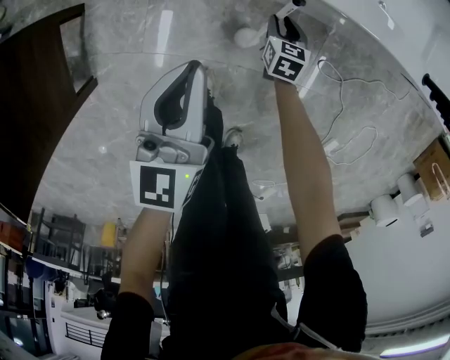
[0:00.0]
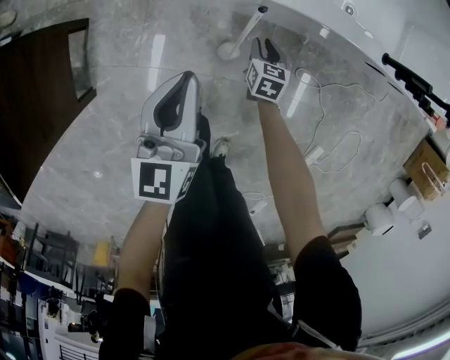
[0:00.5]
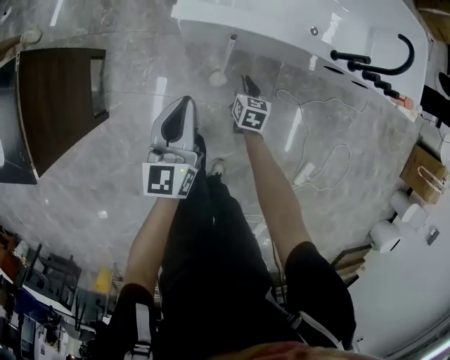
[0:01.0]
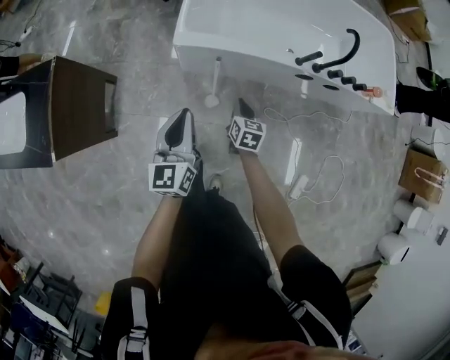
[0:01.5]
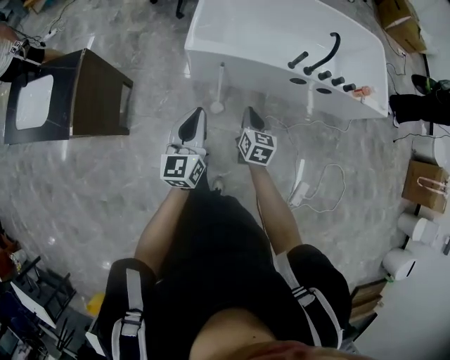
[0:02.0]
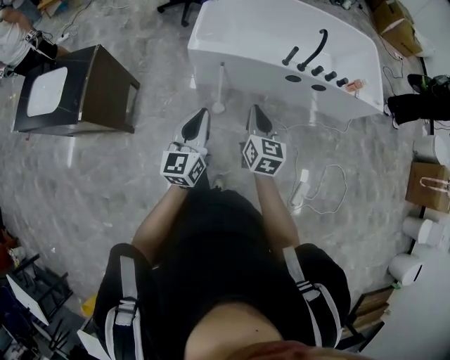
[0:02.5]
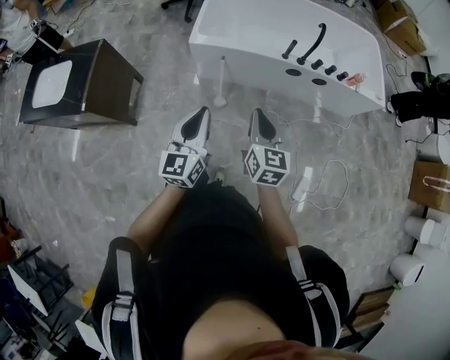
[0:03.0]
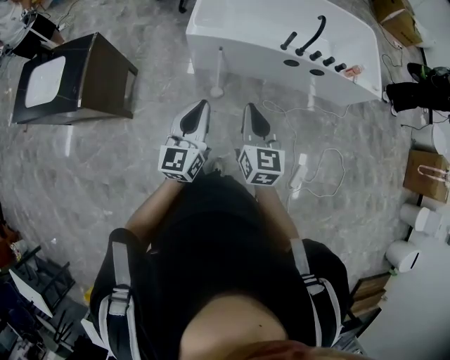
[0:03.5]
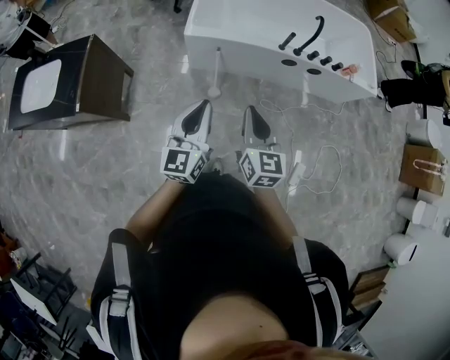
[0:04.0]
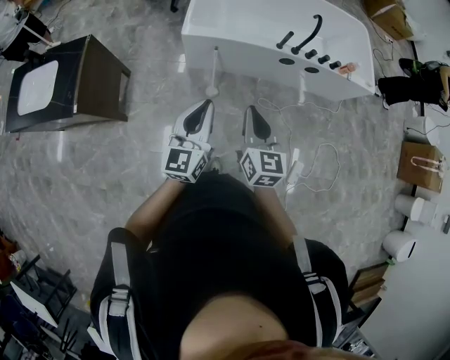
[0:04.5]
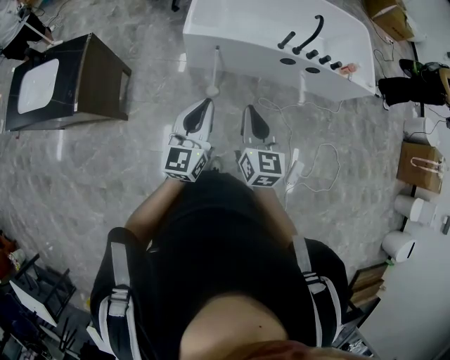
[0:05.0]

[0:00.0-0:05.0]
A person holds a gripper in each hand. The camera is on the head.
0.0 to 2.5 s: The two grippers travel together, backward and to the right, approximately 40 cm. The right gripper heads upward, covering approximately 70 cm, angles its fingers upward, by about 30 degrees, and closes. Meanwhile the left gripper goes approximately 40 cm upward.
2.5 to 5.0 s: The right gripper shifts approximately 10 cm upward, backward and to the left, while the left gripper ends up some 5 cm from where it was.

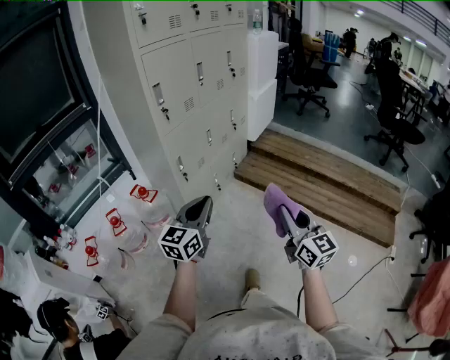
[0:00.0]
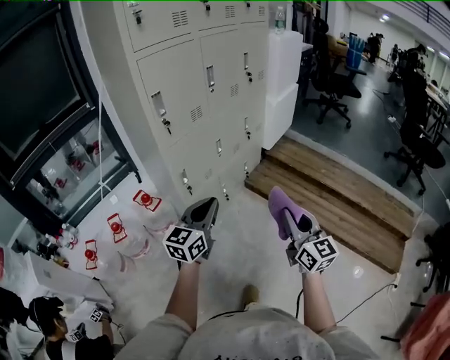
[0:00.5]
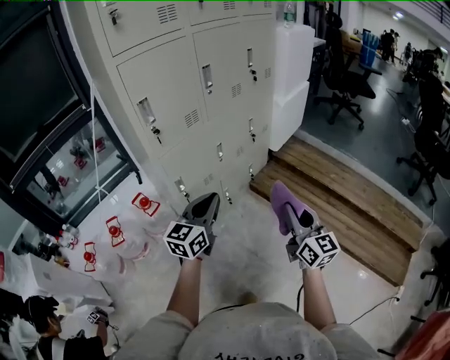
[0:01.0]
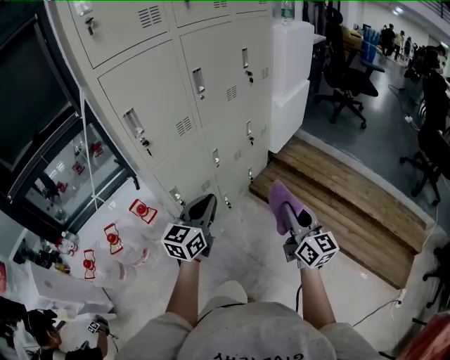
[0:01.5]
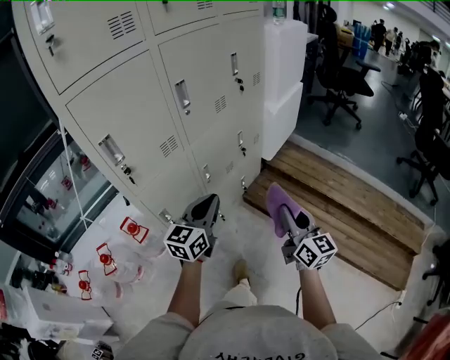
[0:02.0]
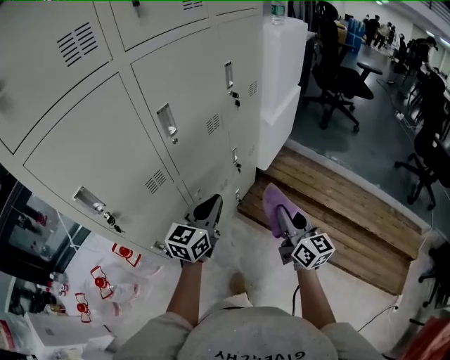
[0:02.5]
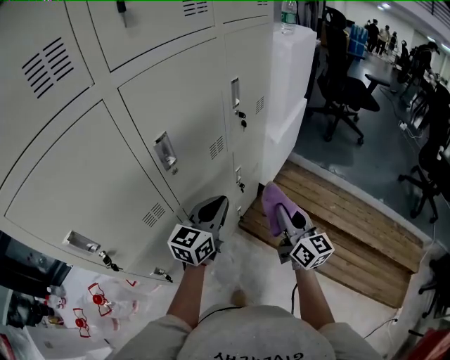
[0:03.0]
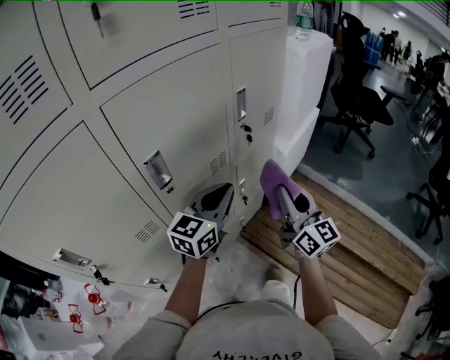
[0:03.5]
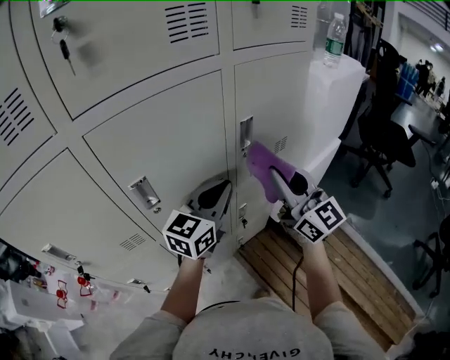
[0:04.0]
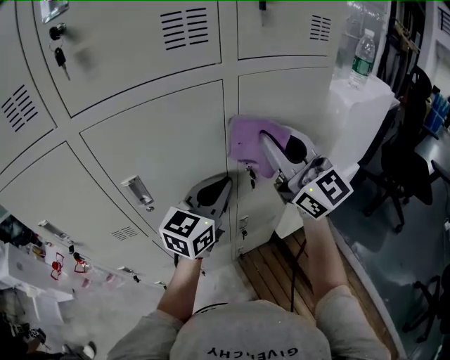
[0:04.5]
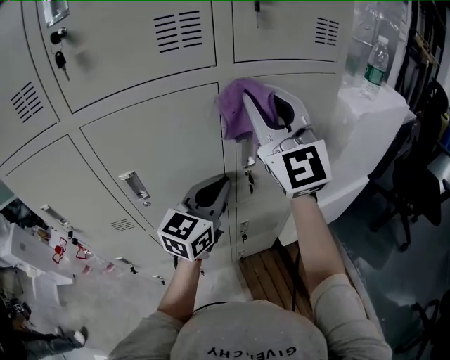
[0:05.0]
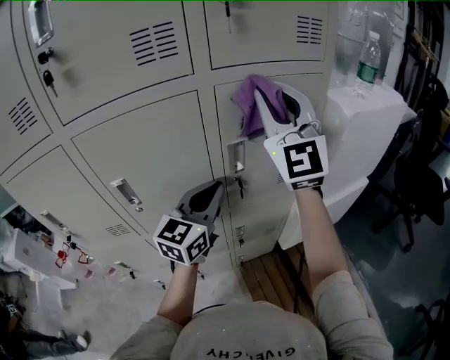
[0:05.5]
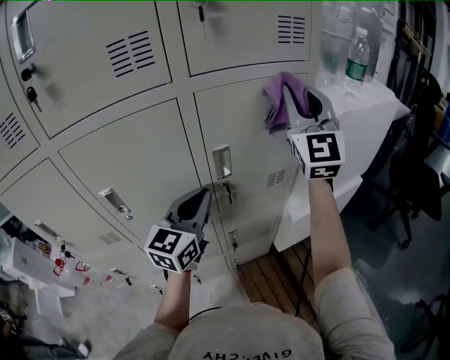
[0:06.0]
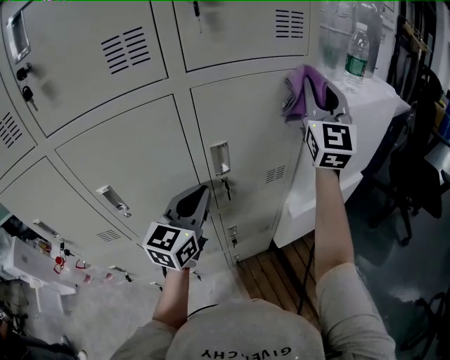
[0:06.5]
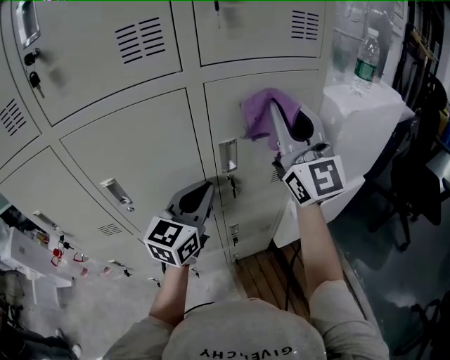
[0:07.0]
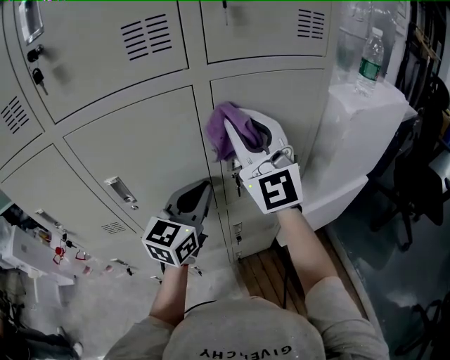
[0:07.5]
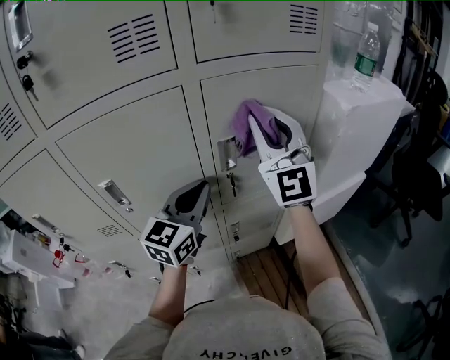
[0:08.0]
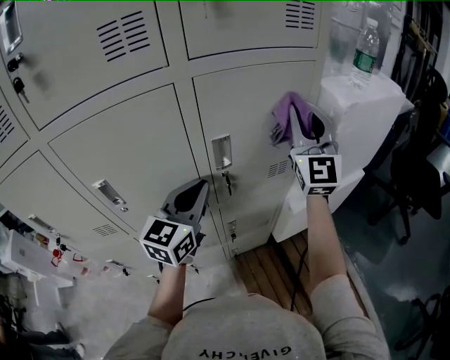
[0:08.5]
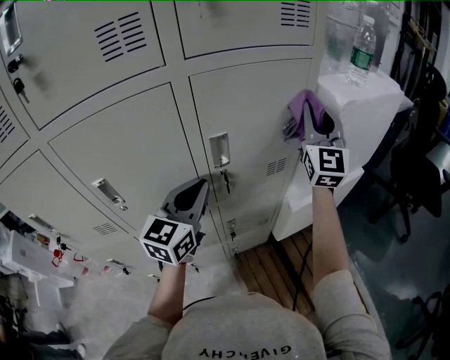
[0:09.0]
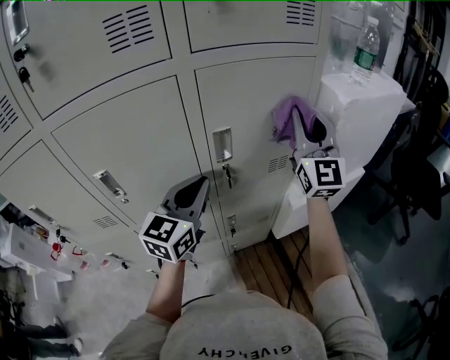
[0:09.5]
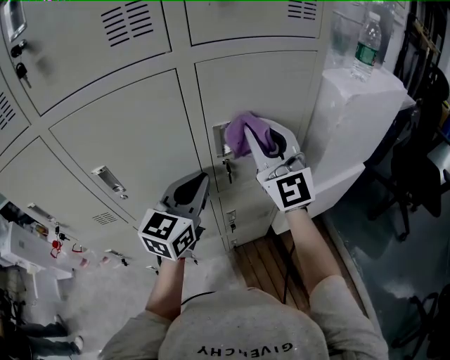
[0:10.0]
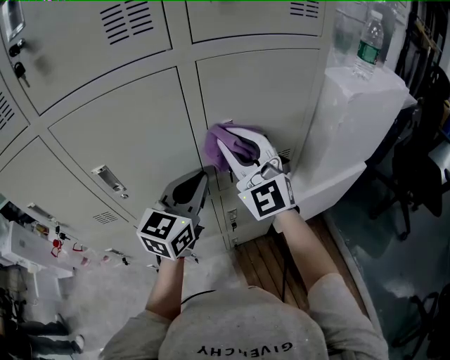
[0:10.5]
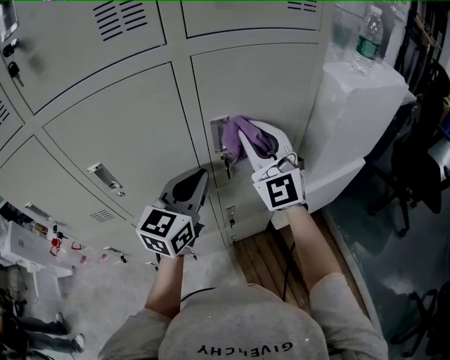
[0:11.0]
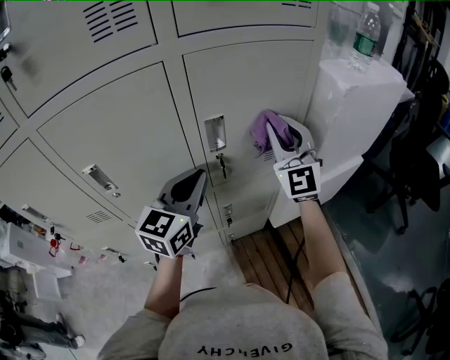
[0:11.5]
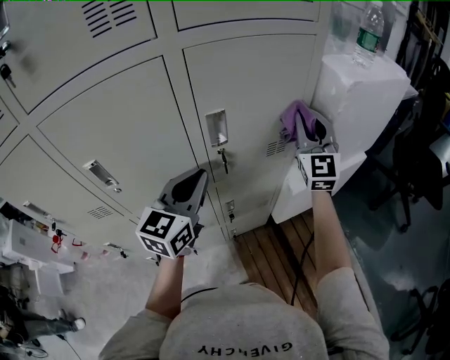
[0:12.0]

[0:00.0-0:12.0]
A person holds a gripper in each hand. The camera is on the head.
0.0 to 2.0 s: Both grippers are carried forward, about 50 cm.
2.0 to 4.0 s: Both grippers are carried forward, approximately 40 cm. The right gripper goes about 20 cm upward, and turns by some 30 degrees.
4.0 to 6.0 s: The right gripper travels upward, forward and to the right by approximately 30 cm, and changes its angle by about 30 degrees, while the left gripper moves roughly 5 cm, and changes its angle by about 20 degrees.
6.0 to 8.0 s: The right gripper swings left and right, some 20 cm each way, with 2 reversals.
8.0 to 10.0 s: The right gripper is displaced downward by about 5 cm, and goes to the right and returns, about 15 cm each way.
10.0 to 12.0 s: The right gripper goes about 20 cm to the right, forward and downward, and swivels roughly 20 degrees.

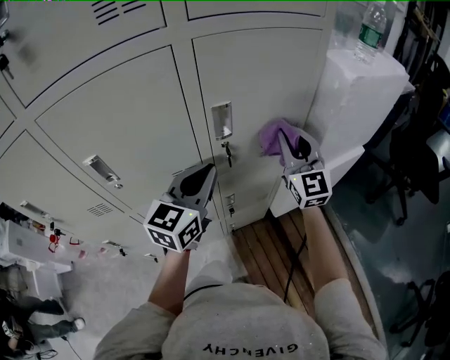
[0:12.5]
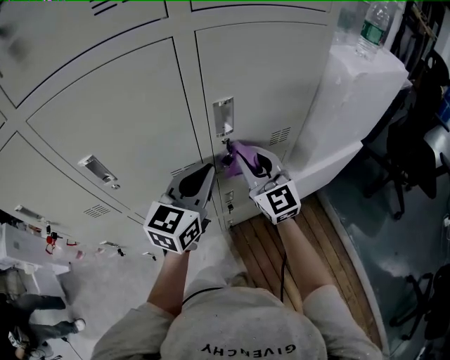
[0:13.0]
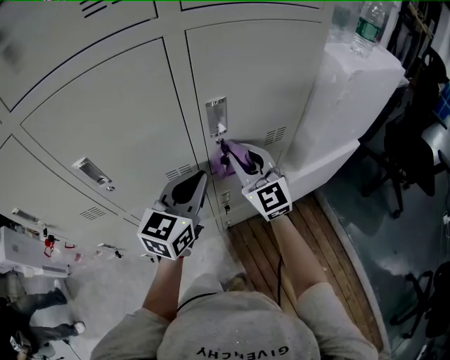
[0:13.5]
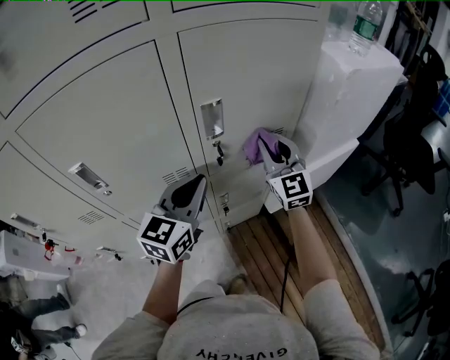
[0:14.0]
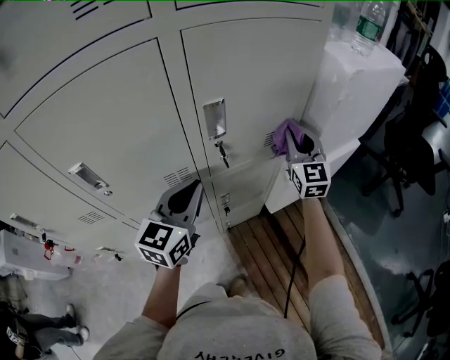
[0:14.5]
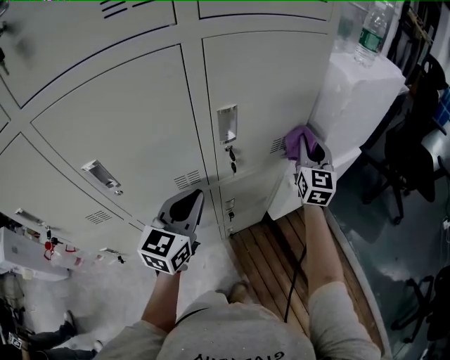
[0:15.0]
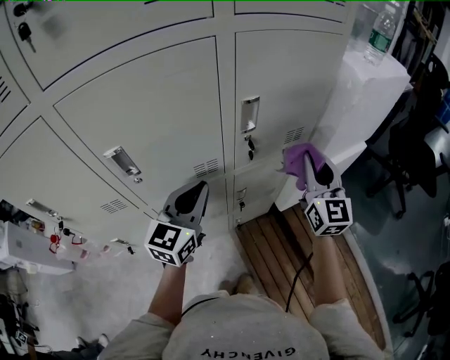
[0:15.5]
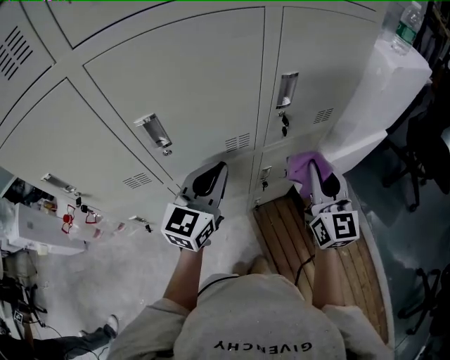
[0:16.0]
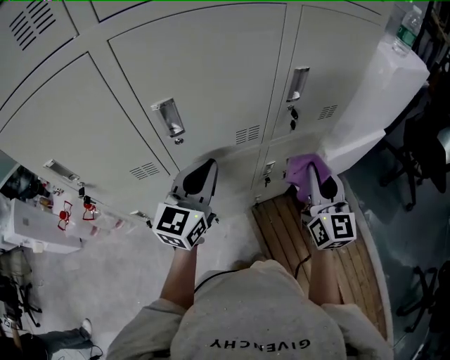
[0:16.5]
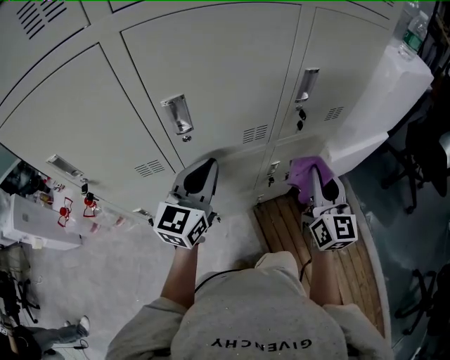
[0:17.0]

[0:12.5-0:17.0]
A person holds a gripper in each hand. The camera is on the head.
12.5 to 14.5 s: The right gripper goes some 10 cm downward and forward, and goes to the left and returns, about 10 cm each way.
14.5 to 17.0 s: The right gripper moves backward and to the left, roughly 25 cm, and swivels approximately 20 degrees. Meanwhile the left gripper moves to the left and backward, approximately 20 cm.

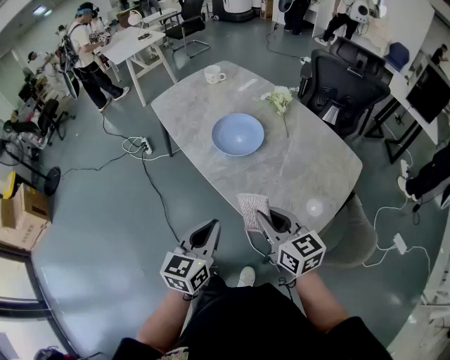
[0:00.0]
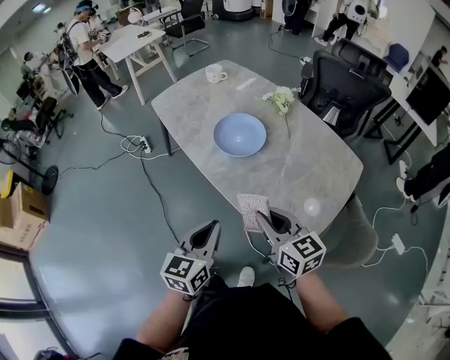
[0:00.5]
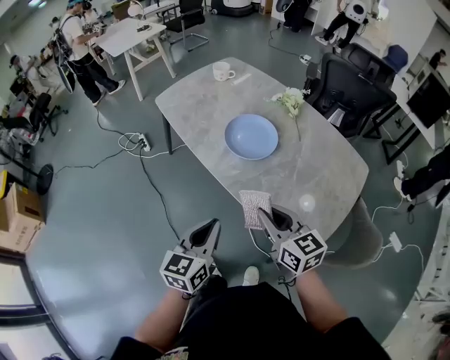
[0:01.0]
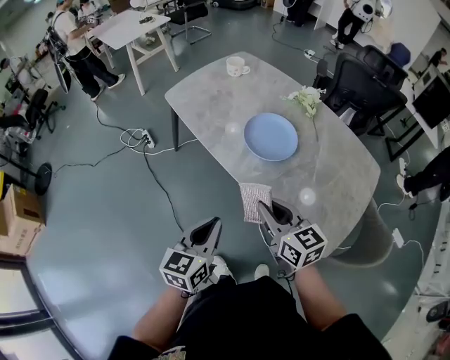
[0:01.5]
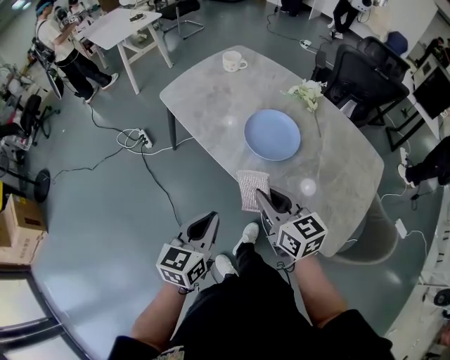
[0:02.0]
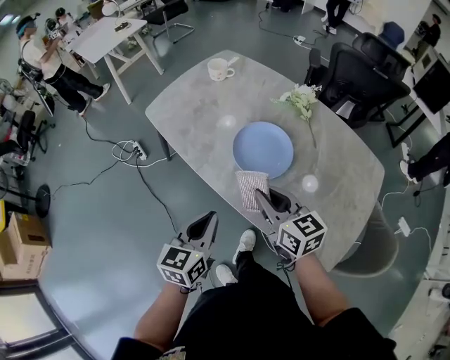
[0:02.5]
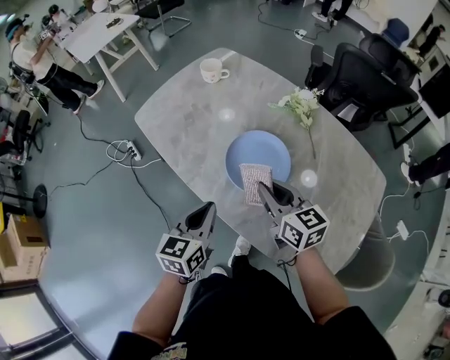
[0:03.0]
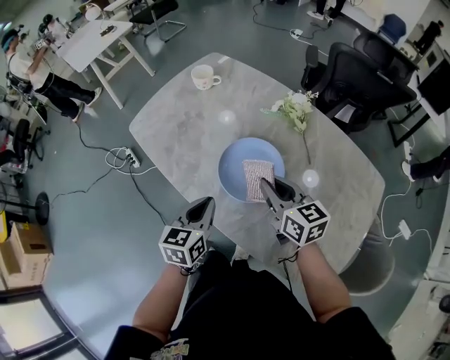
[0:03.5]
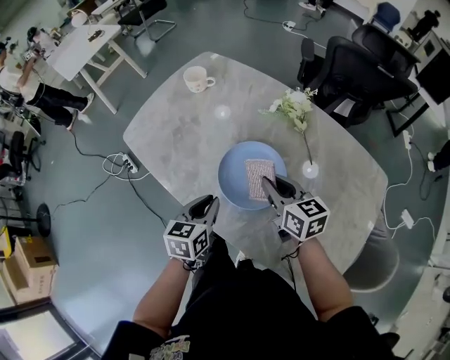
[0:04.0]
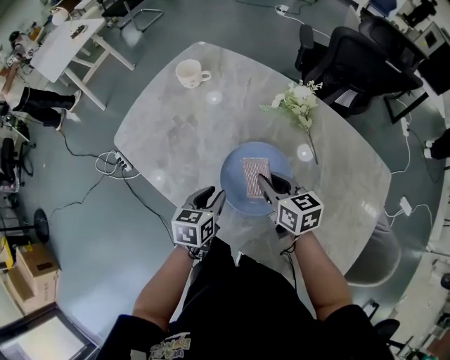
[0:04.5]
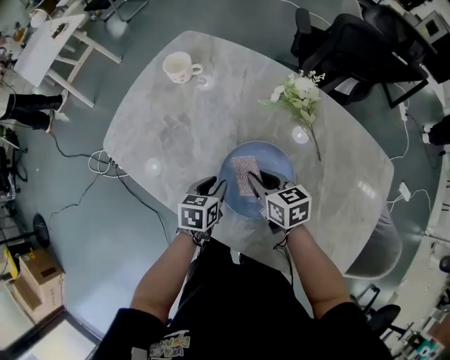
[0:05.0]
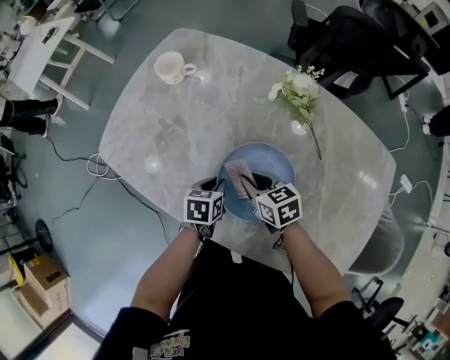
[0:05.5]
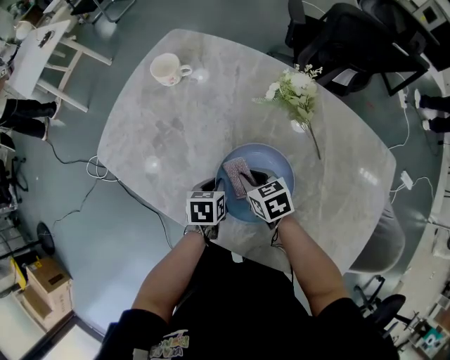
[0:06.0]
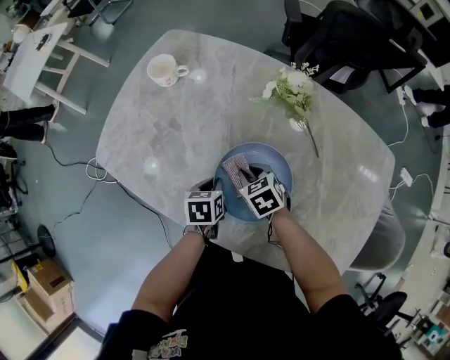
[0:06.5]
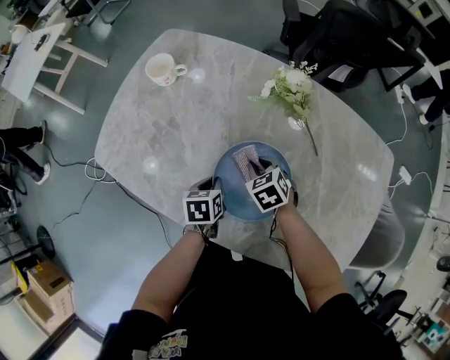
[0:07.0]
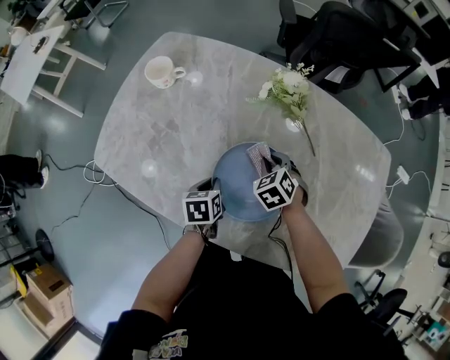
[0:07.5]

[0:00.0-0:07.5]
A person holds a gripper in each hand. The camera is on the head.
0.0 to 2.0 s: Both grippers move to the left and forward, about 25 cm.
2.0 to 4.0 s: The left gripper goes about 30 cm forward. Meanwhile the right gripper shifts some 30 cm forward and to the right.
4.0 to 5.5 s: The right gripper shifts about 15 cm downward, forward and to the left, while the left gripper travels downward and forward by approximately 20 cm, and rotates some 30 degrees.
5.5 to 7.5 s: The right gripper moves to the right and forward, some 10 cm, and rotates roughly 40 degrees.
